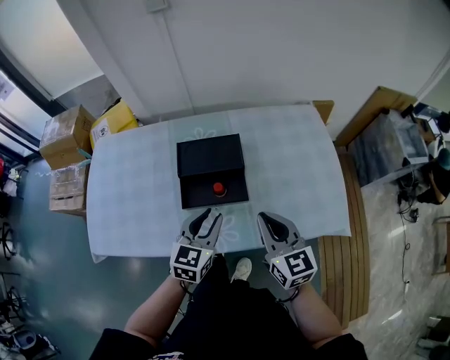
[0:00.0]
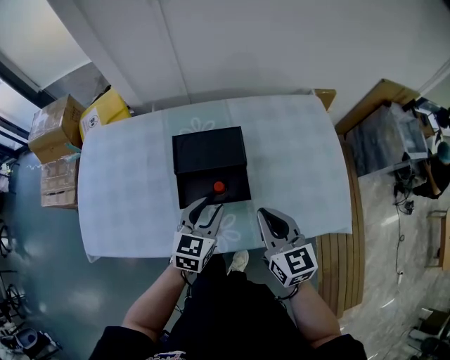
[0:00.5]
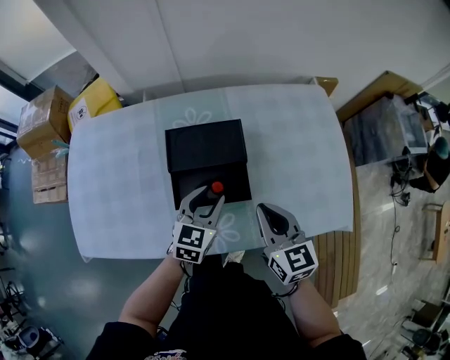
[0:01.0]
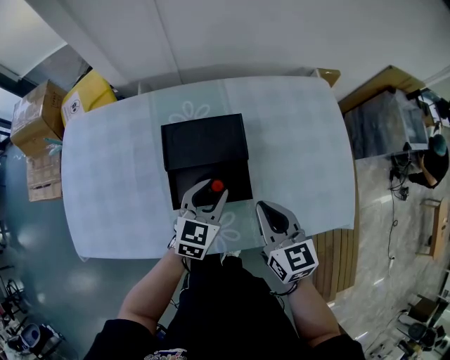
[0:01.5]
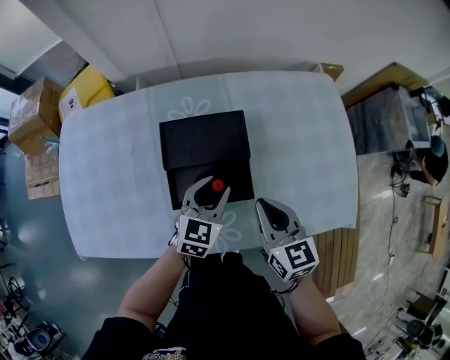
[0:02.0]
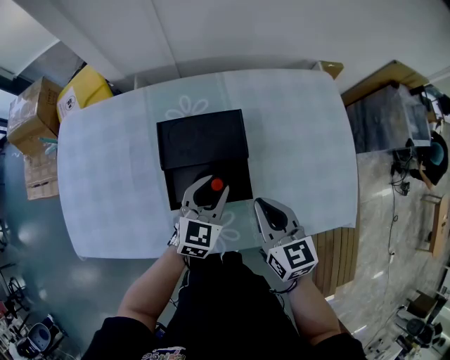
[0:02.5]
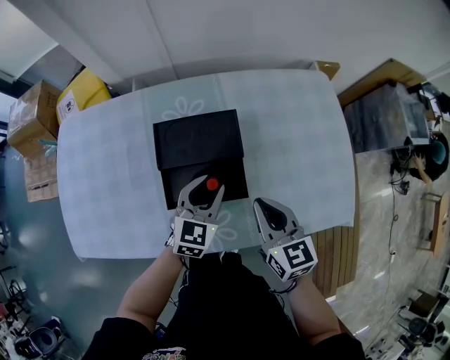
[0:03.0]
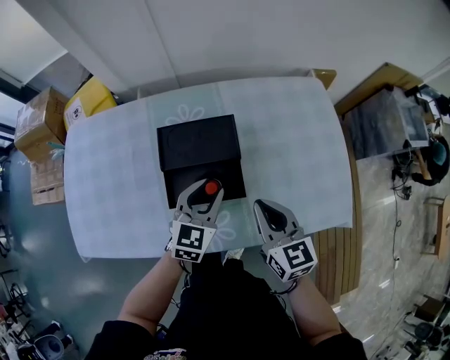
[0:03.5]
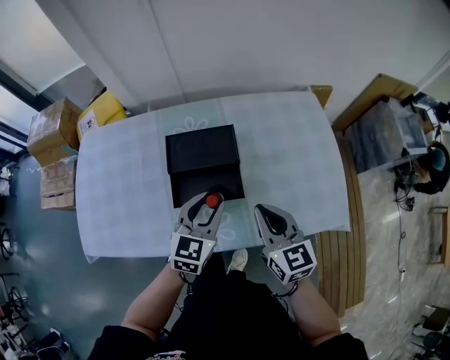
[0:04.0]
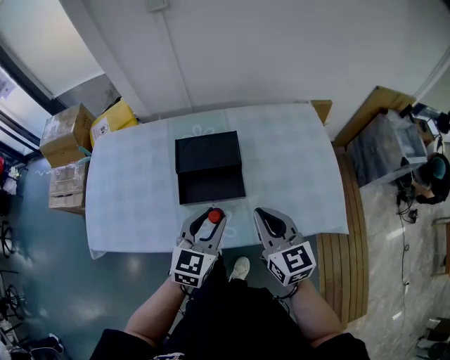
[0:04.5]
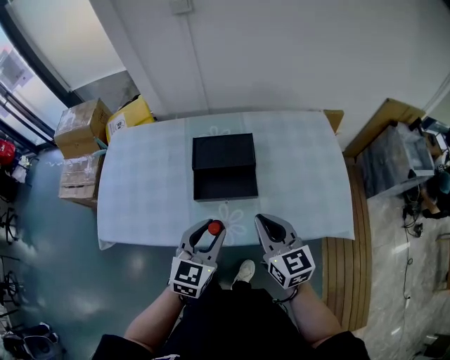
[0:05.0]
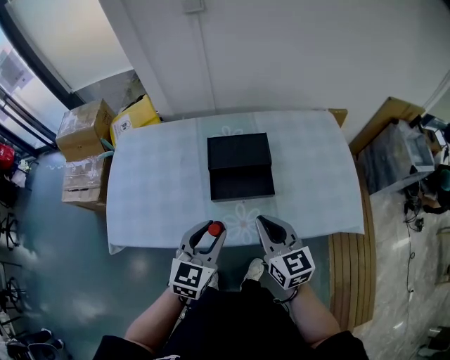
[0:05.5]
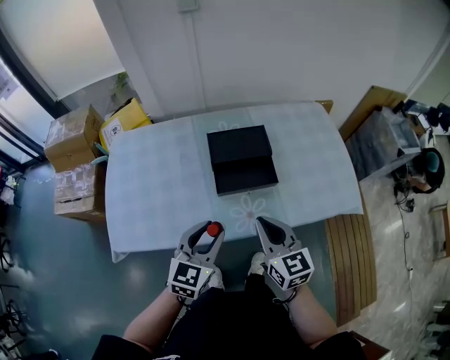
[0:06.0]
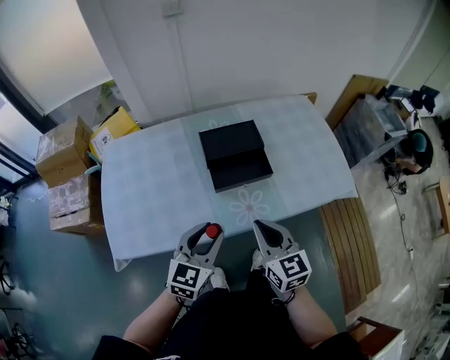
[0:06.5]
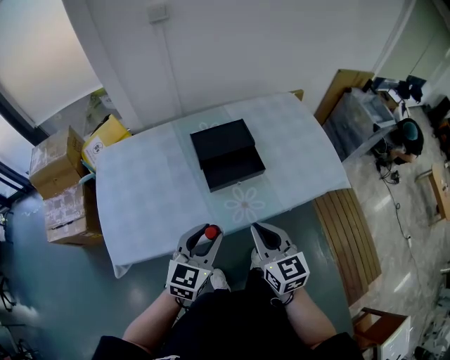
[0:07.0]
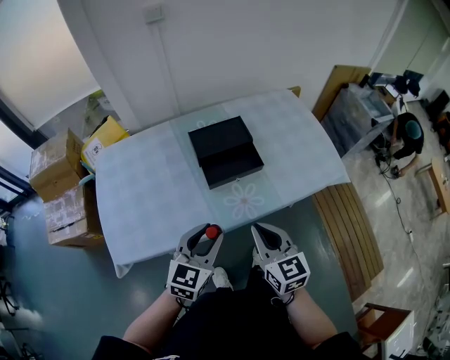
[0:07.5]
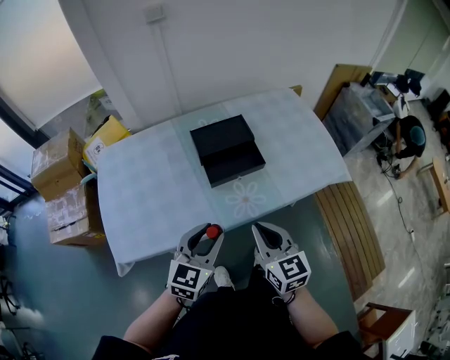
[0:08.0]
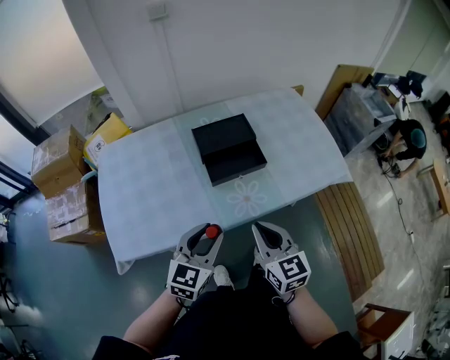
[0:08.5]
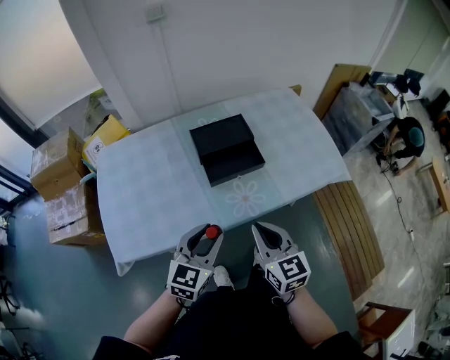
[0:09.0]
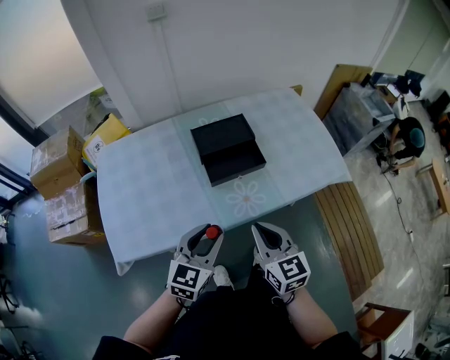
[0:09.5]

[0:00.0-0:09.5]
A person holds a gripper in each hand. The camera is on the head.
0:00.0 to 0:02.0: The left gripper travels forward and downward by some 15 cm; the right gripper moves downward and forward, about 10 cm.
0:02.0 to 0:04.0: The right gripper heads upward, covering approximately 5 cm. Meanwhile the left gripper shifts some 10 cm upward and backward.
0:04.0 to 0:05.5: The left gripper travels backward, to the left and upward by approximately 15 cm, while the right gripper is displaced to the left and backward by roughly 10 cm.
0:05.5 to 0:07.5: The left gripper travels backward and to the left by about 10 cm. The right gripper heads backward, covering roughly 15 cm.
0:07.5 to 0:09.5: Neither gripper changes place.

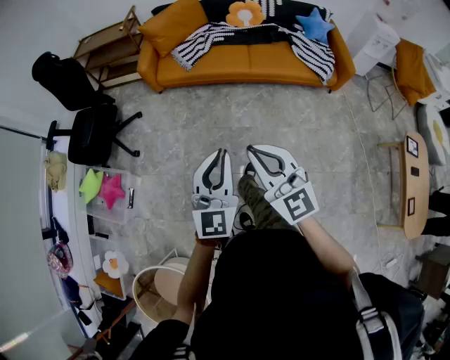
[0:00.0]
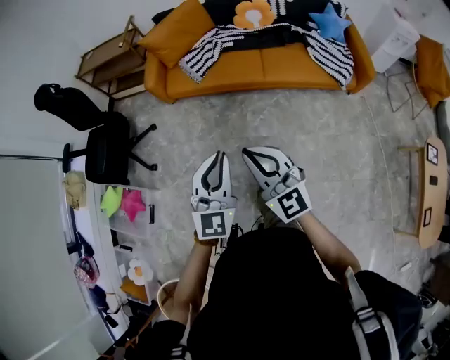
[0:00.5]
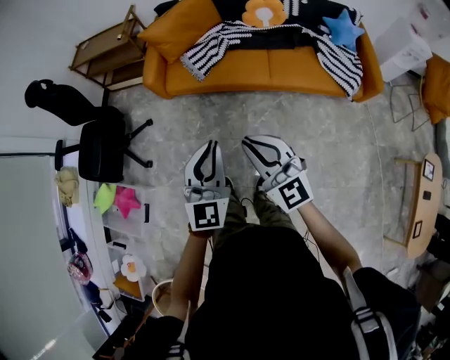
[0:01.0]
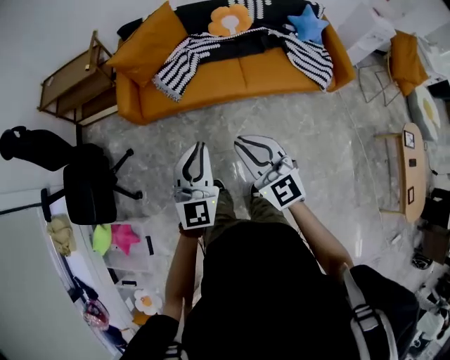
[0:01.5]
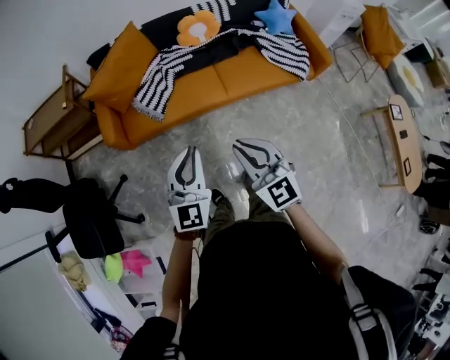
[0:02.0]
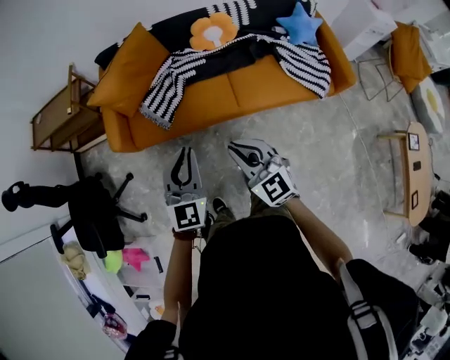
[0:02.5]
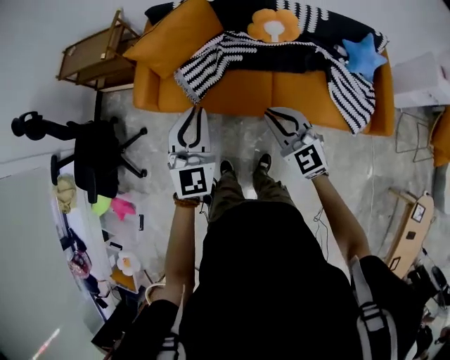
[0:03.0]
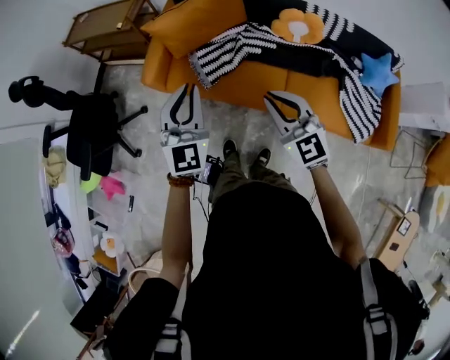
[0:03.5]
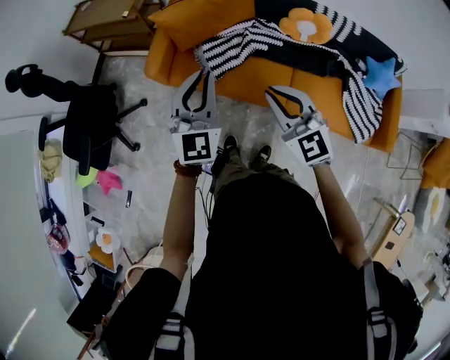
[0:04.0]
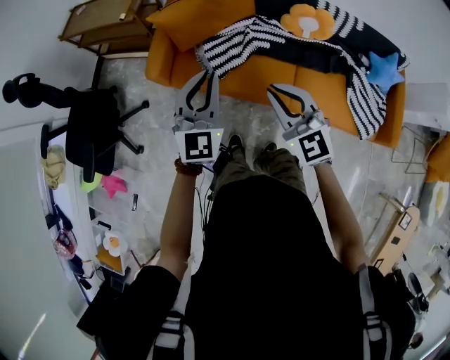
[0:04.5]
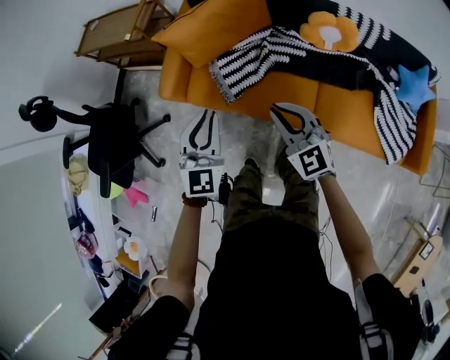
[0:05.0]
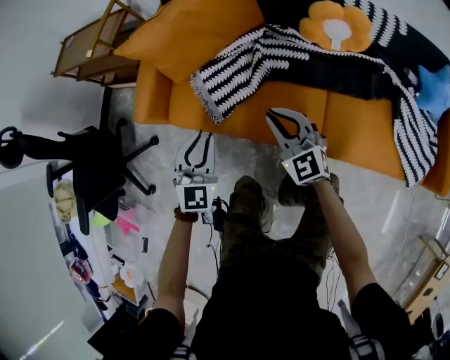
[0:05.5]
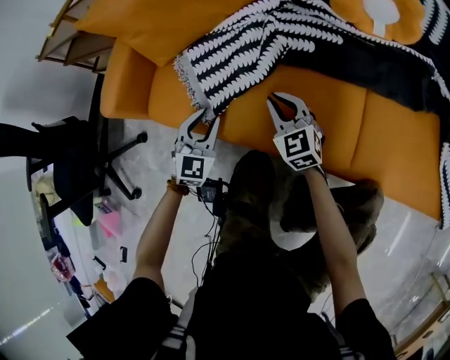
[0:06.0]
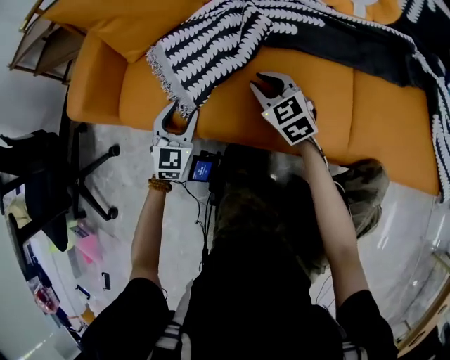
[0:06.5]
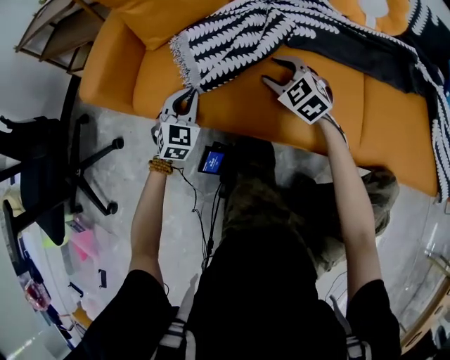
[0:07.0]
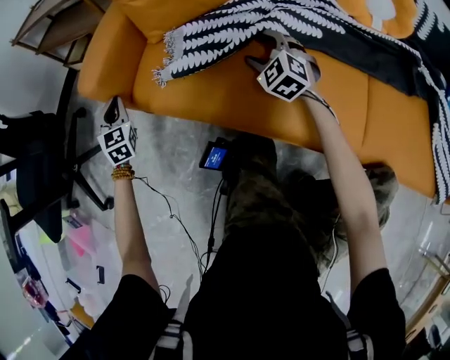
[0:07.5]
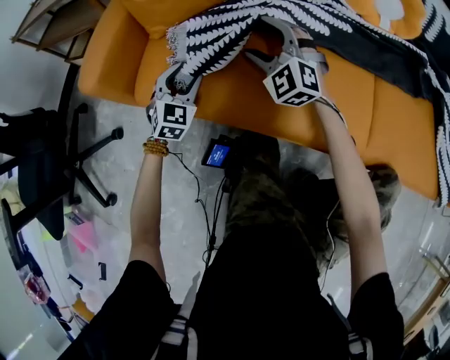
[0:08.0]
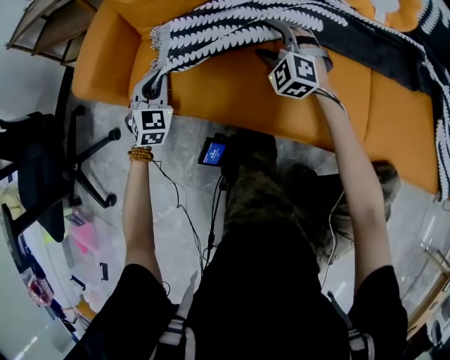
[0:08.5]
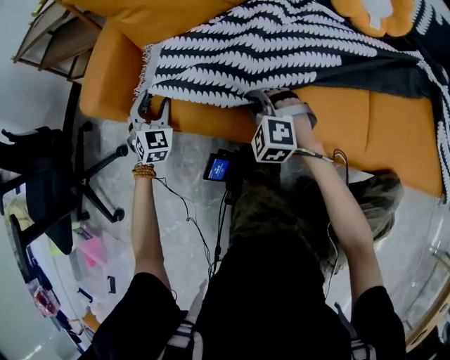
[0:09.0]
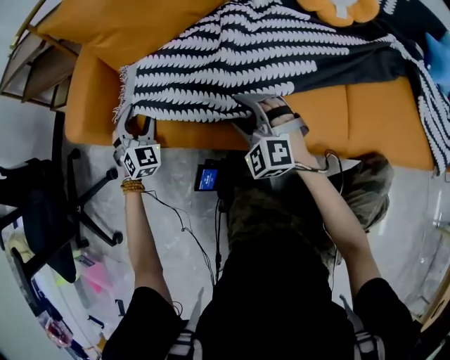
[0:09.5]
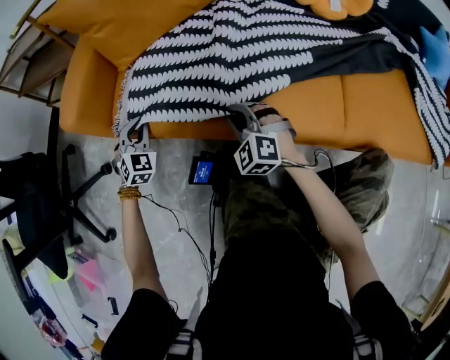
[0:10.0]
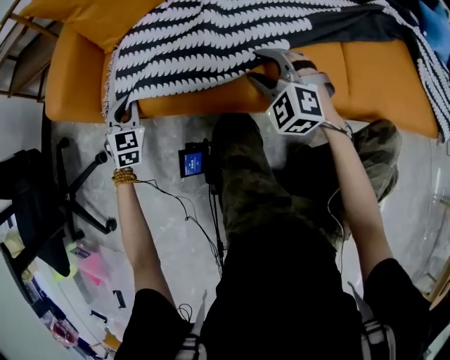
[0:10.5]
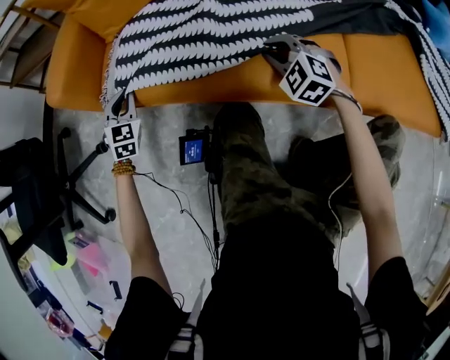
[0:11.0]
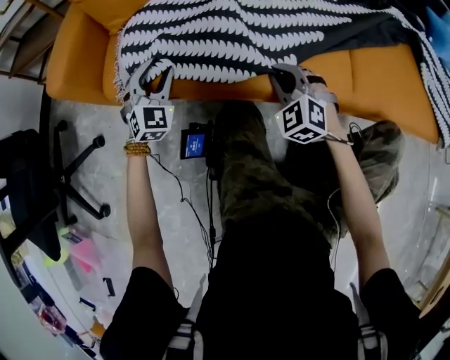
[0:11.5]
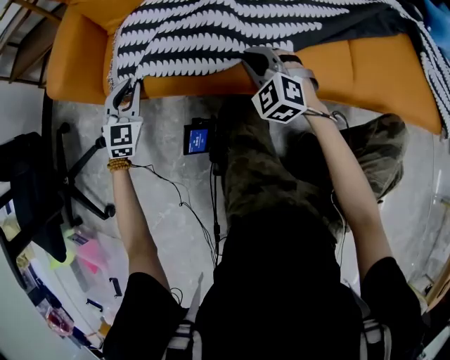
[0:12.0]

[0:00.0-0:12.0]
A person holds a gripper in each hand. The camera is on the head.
0:00.0 to 0:02.0: The two grippers go about 40 cm forward. The right gripper changes its angle by some 20 degrees.
0:02.0 to 0:04.0: The right gripper shifts by approximately 25 cm, and turns by roughly 30 degrees. The left gripper changes place by approximately 25 cm, and swivels some 30 degrees.
0:04.0 to 0:06.0: Both grippers move downward, some 60 cm. The left gripper swivels roughly 30 degrees.
0:06.0 to 0:08.0: The left gripper travels forward and downward by some 10 cm, goes to the left and returns, roughly 30 cm each way, and opens, while the right gripper goes roughly 10 cm forward and to the left, swivels roughly 40 degrees, and opens its fingers.
0:08.0 to 0:10.0: The left gripper moves approximately 5 cm, and closes. The right gripper moves backward and downward, roughly 15 cm, and closes.
0:10.0 to 0:12.0: The left gripper goes to the right and returns, some 10 cm each way, and opens and closes again; the right gripper moves roughly 10 cm to the right and comes back, and opens, then closes again.

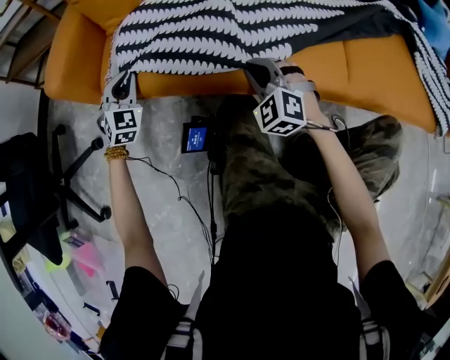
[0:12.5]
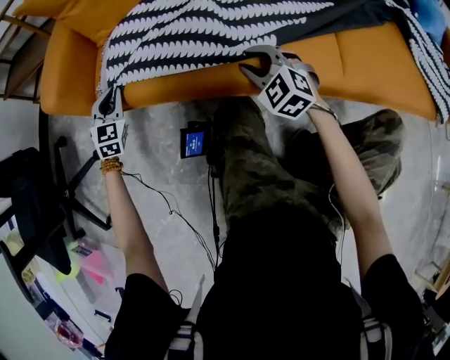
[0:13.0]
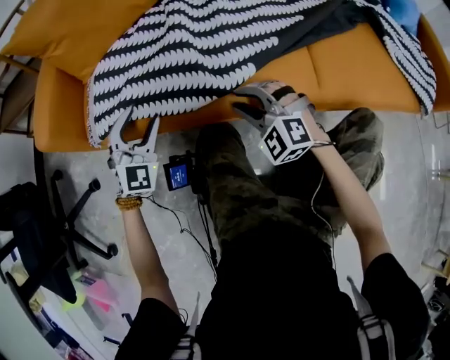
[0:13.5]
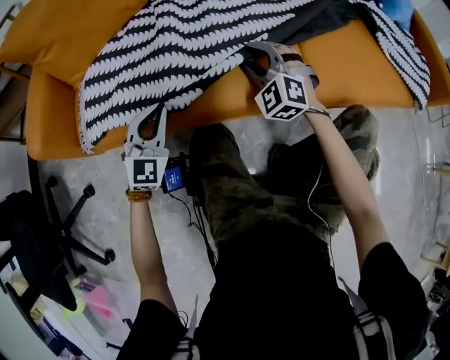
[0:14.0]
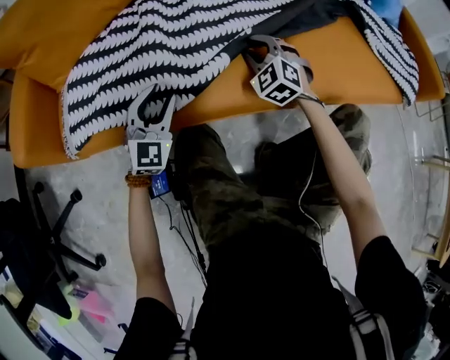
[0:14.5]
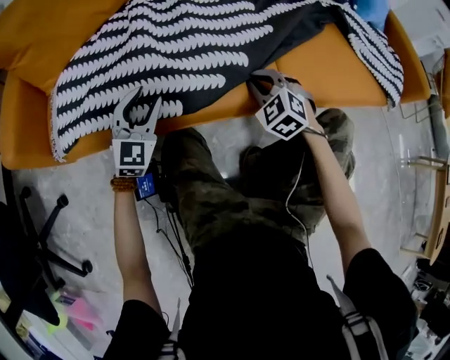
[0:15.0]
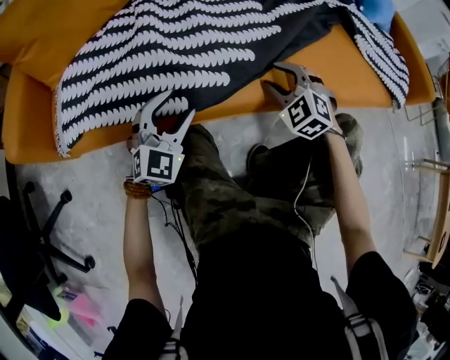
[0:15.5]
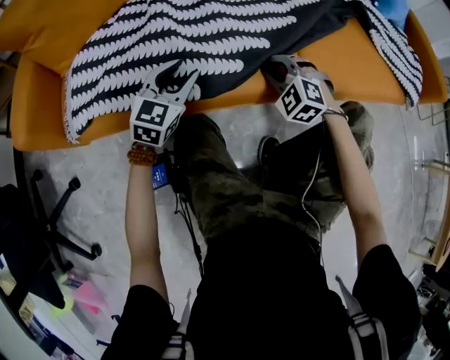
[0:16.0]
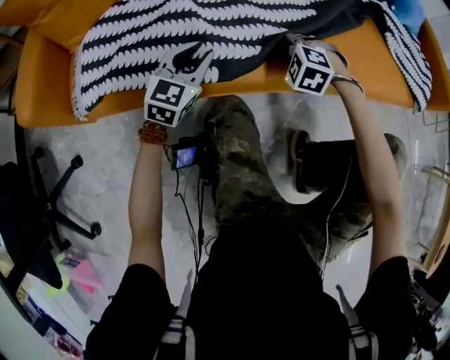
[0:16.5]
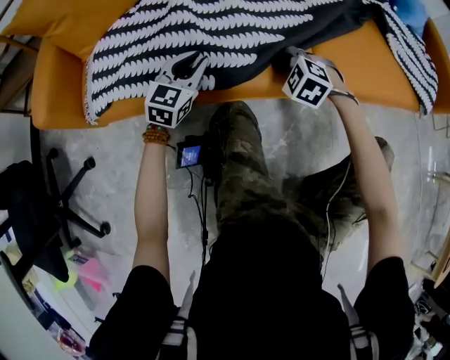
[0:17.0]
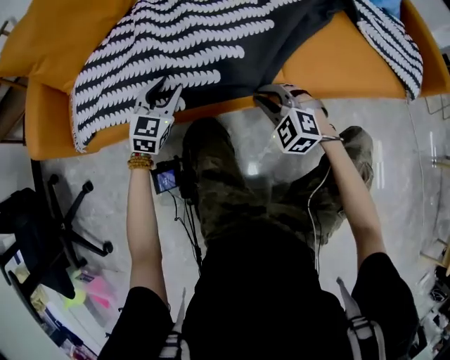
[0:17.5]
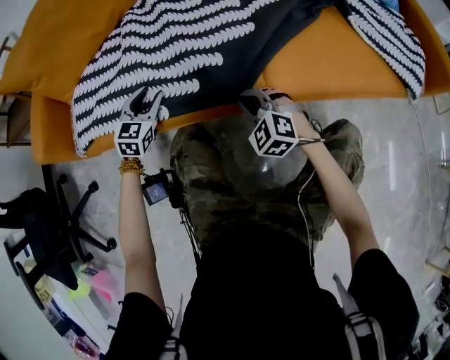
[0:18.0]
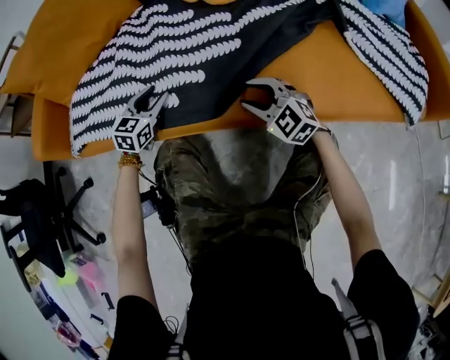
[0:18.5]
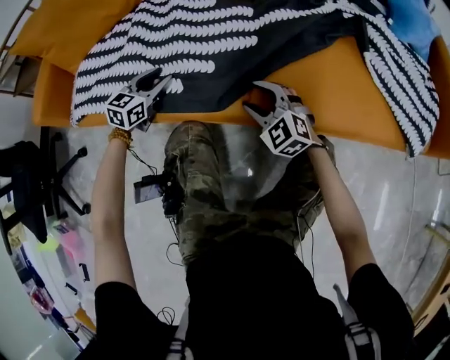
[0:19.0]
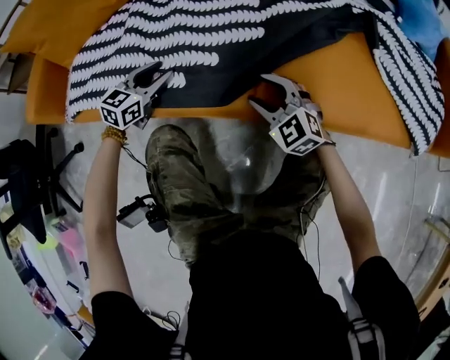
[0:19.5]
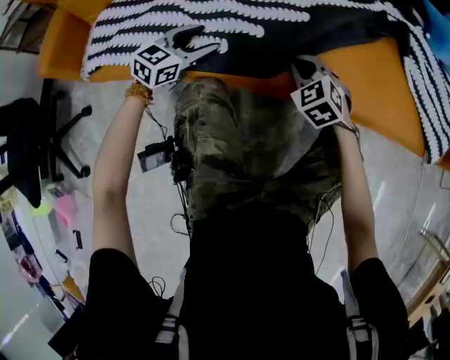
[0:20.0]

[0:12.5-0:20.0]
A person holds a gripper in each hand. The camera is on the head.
0:12.5 to 0:14.5: The left gripper changes place by approximately 30 cm, changes its angle by roughly 30 degrees, and opens up. Meanwhile the right gripper shifts by roughly 20 cm.
0:14.5 to 0:16.5: The right gripper is displaced backward by some 5 cm, and changes its angle by approximately 30 degrees, while the left gripper rotates some 20 degrees.
0:16.5 to 0:18.0: The right gripper goes approximately 10 cm backward and to the right, and rotates roughly 30 degrees.
0:18.0 to 0:20.0: The right gripper is displaced to the right and forward by roughly 10 cm, and opens, then closes again, while the left gripper travels to the right by some 10 cm.
